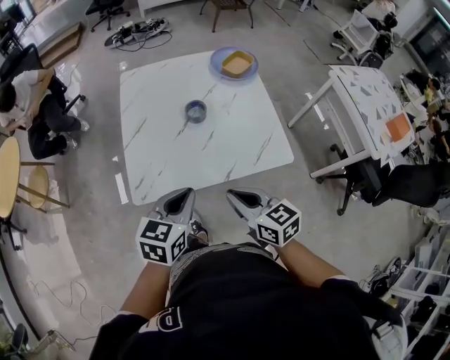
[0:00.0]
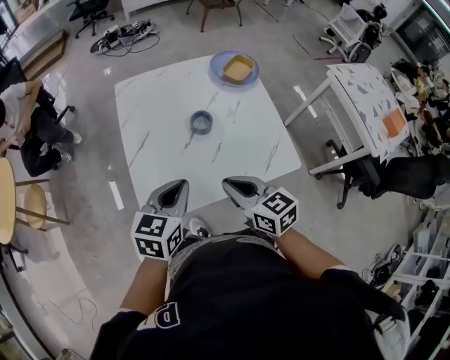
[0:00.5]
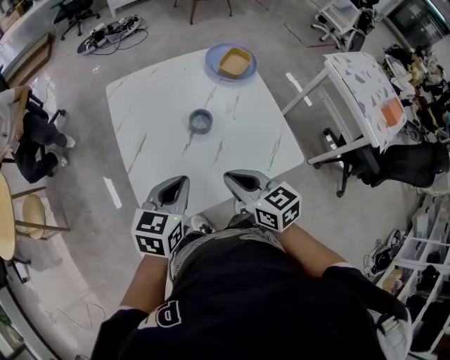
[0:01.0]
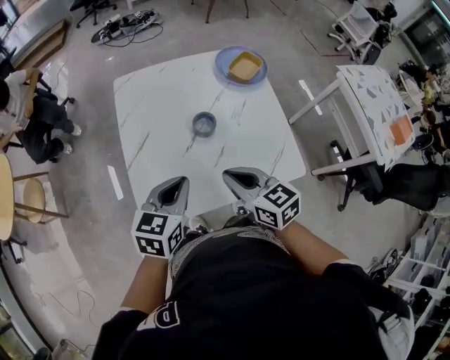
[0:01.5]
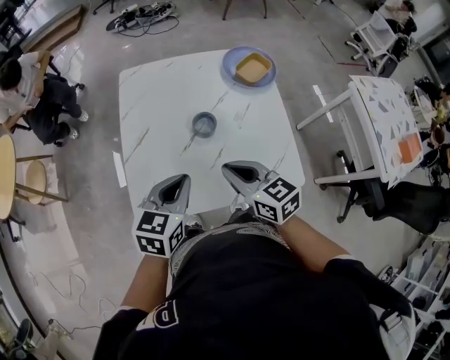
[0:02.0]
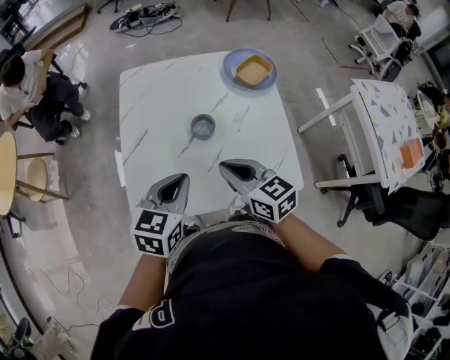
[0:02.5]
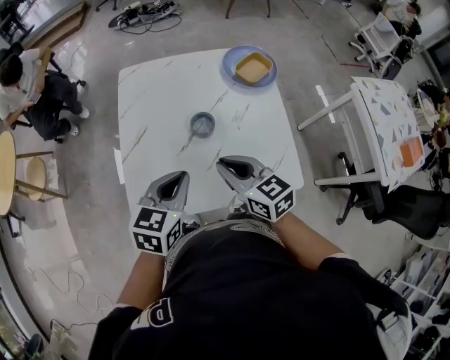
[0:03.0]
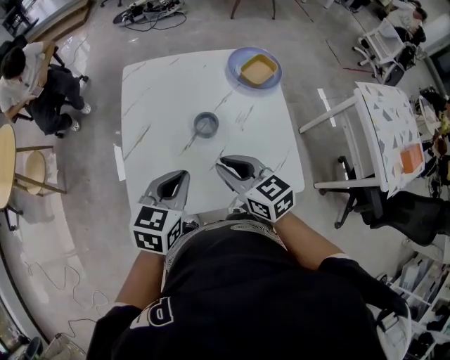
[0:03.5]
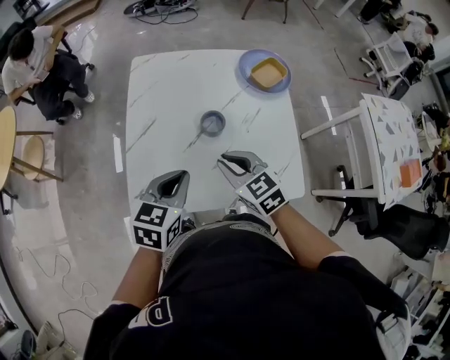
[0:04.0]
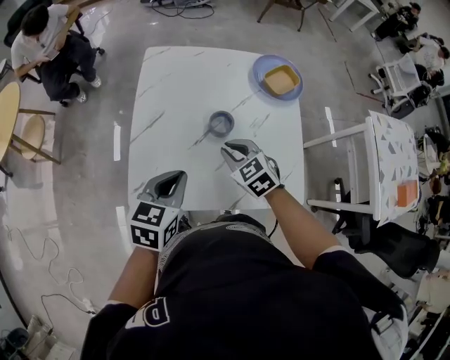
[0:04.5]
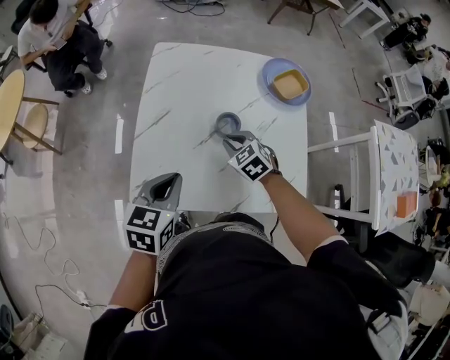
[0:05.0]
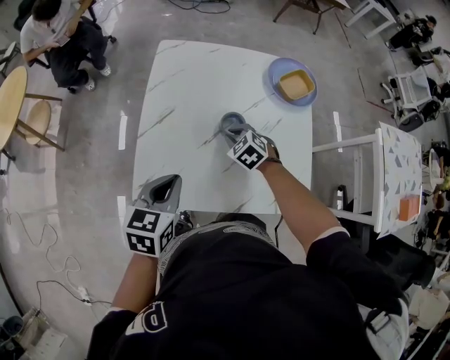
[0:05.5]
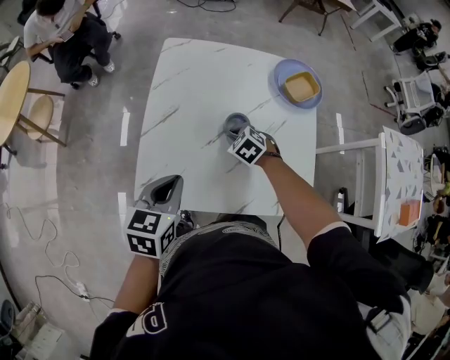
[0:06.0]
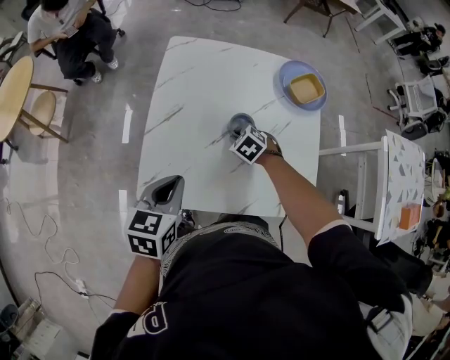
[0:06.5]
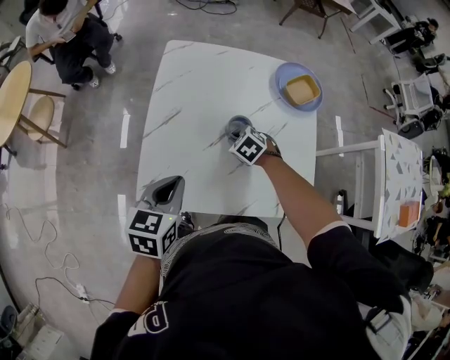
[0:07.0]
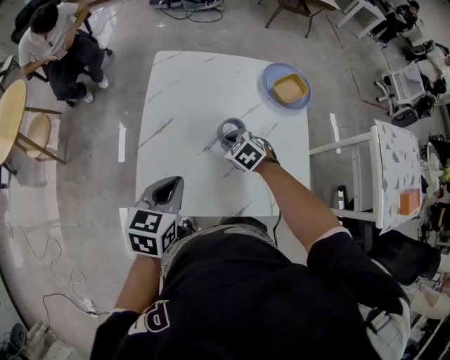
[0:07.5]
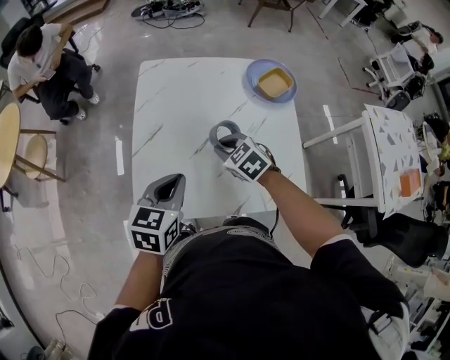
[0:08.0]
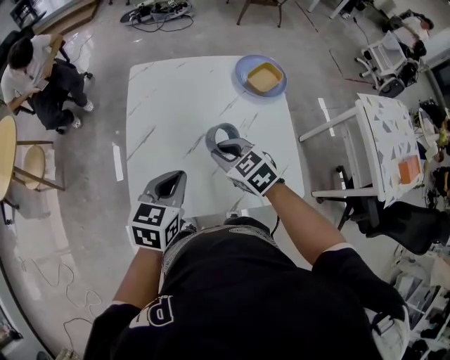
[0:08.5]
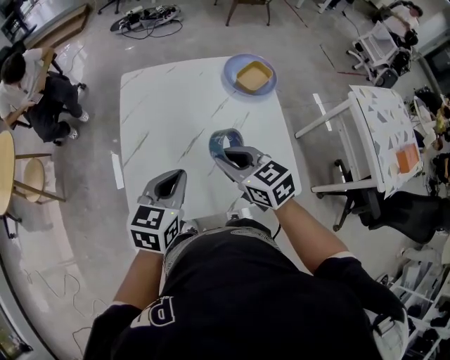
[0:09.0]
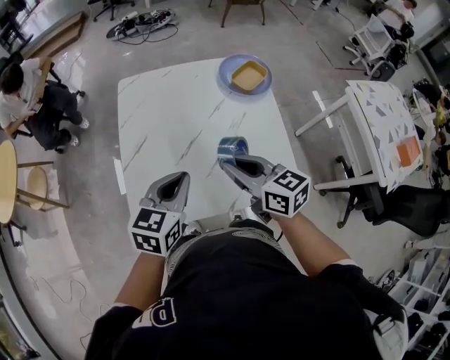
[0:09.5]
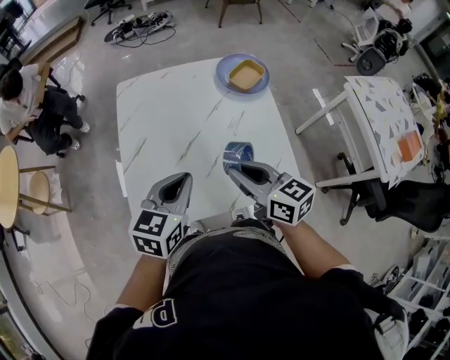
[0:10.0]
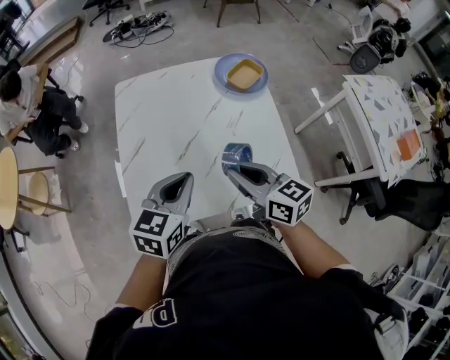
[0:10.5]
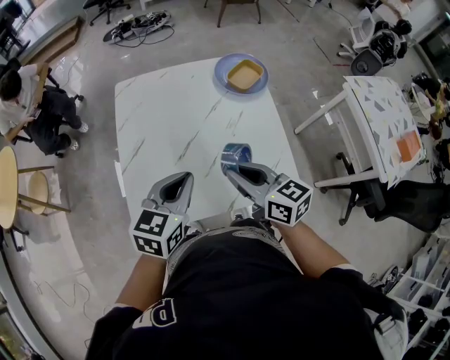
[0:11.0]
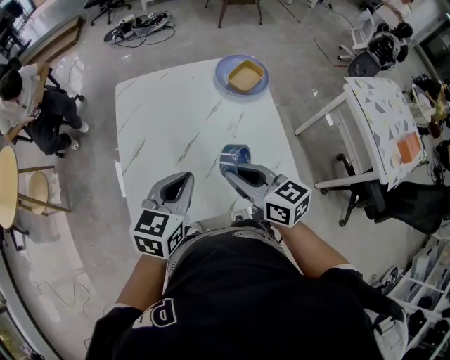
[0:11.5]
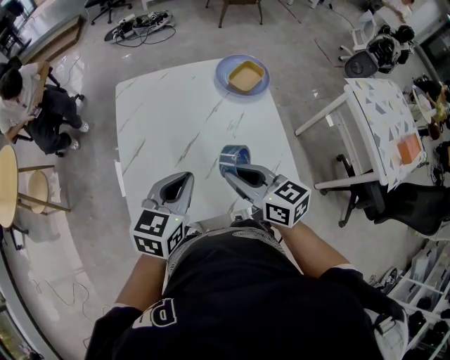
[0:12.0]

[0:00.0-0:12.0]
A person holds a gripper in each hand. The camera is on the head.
0:00.0 to 0:02.0: The grippers both shift forward by roughly 15 cm.
0:02.0 to 0:04.0: The right gripper shifts by about 5 cm, and rotates some 20 degrees.
0:04.0 to 0:06.0: The left gripper goes roughly 5 cm to the left. Meanwhile the right gripper moves downward and forward, about 20 cm, and swivels some 30 degrees.
0:06.0 to 0:08.0: The right gripper goes roughly 10 cm upward.
0:08.0 to 0:10.0: The left gripper goes some 5 cm to the right. The right gripper heads upward, backward and to the right, covering roughly 20 cm, and tips its fingers upward by roughly 40 degrees.
0:10.0 to 0:12.0: Both grippers stay put.

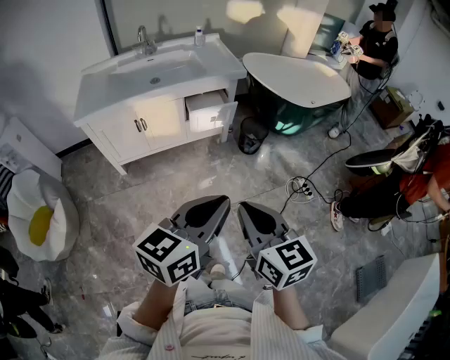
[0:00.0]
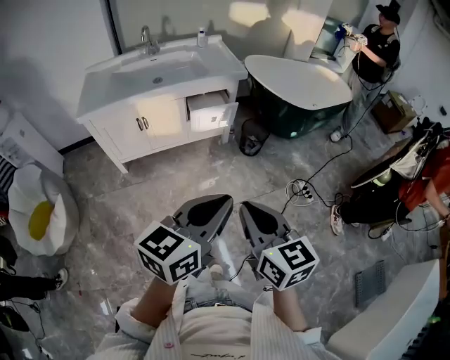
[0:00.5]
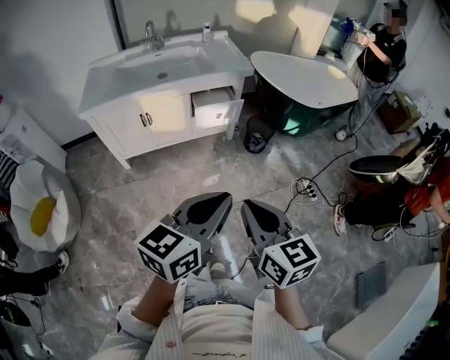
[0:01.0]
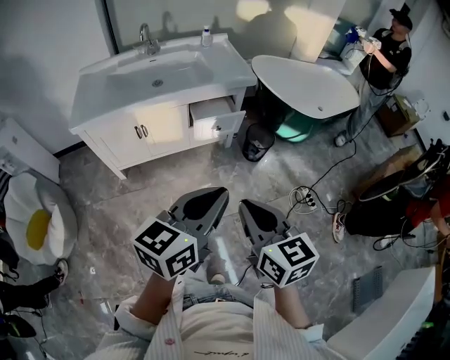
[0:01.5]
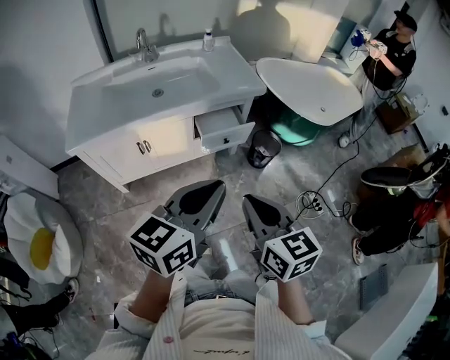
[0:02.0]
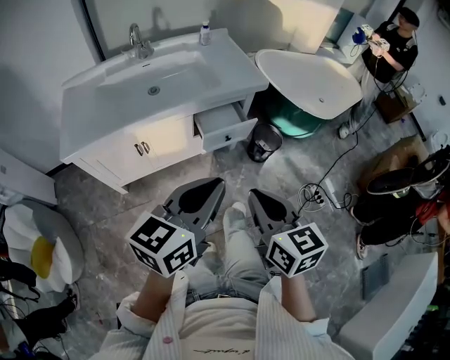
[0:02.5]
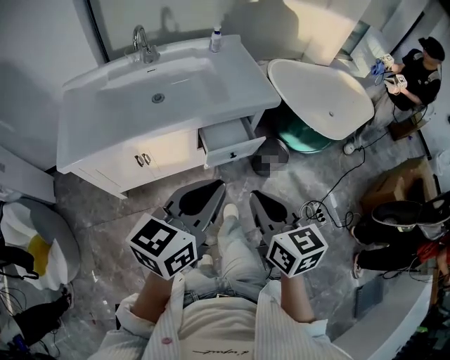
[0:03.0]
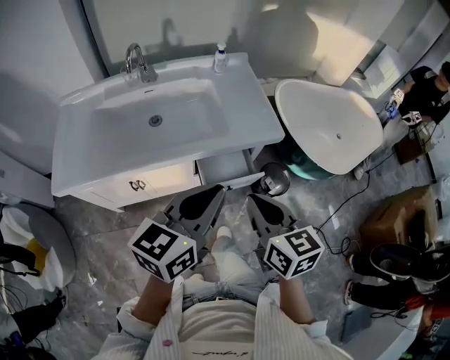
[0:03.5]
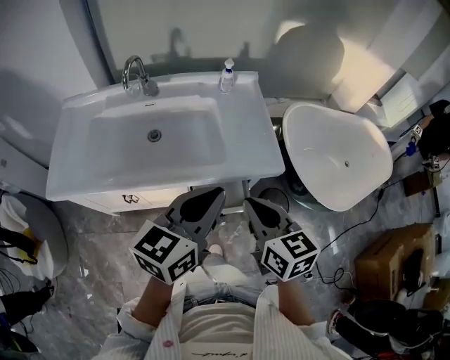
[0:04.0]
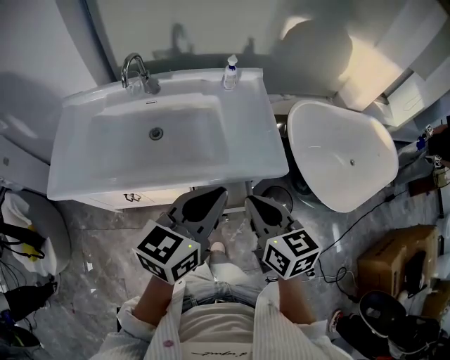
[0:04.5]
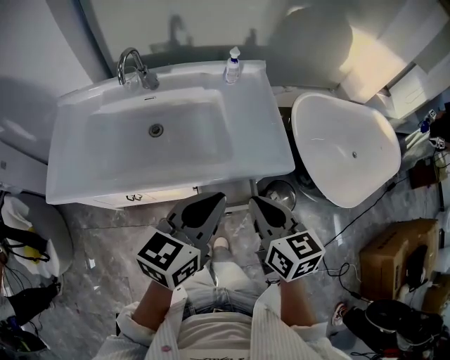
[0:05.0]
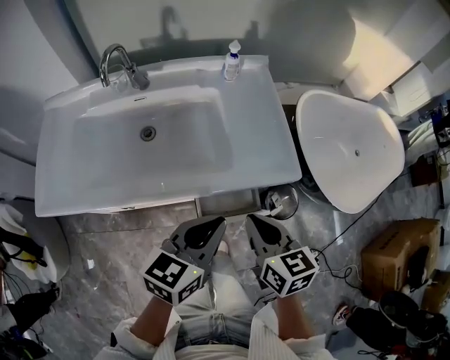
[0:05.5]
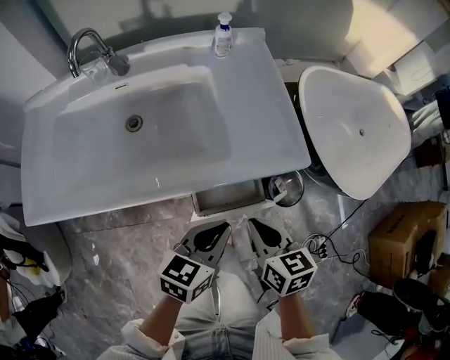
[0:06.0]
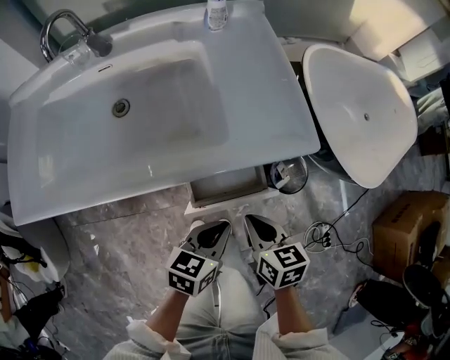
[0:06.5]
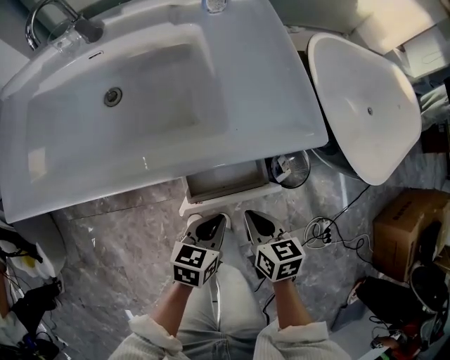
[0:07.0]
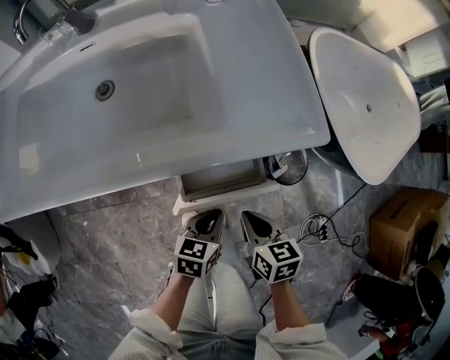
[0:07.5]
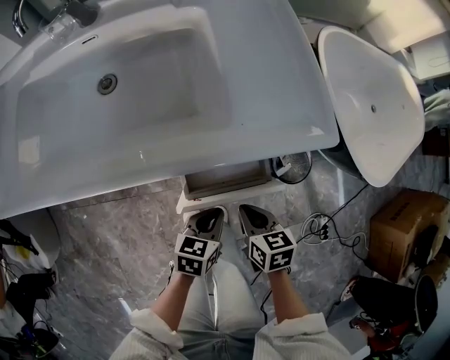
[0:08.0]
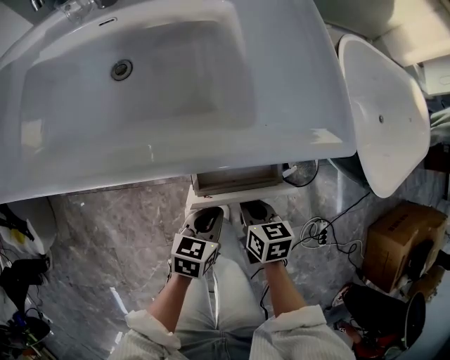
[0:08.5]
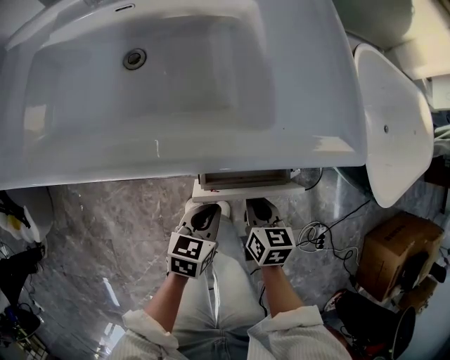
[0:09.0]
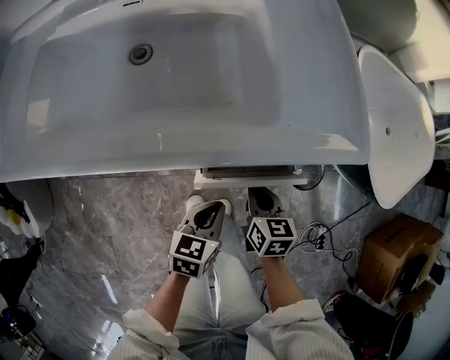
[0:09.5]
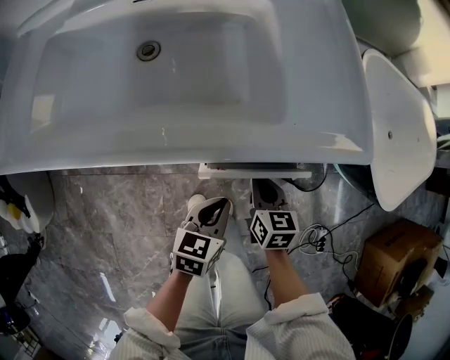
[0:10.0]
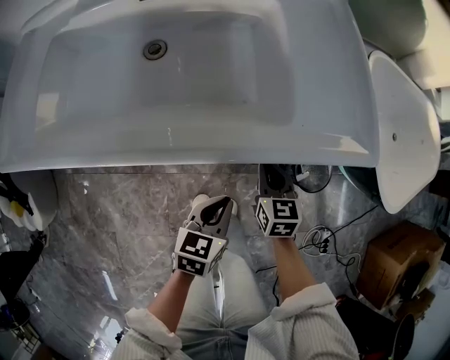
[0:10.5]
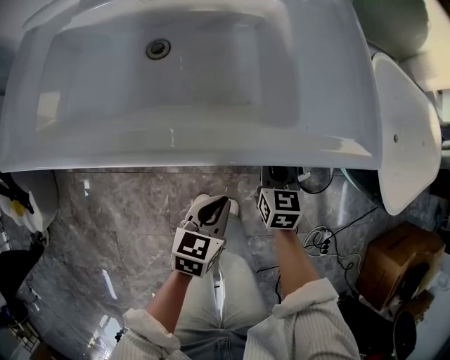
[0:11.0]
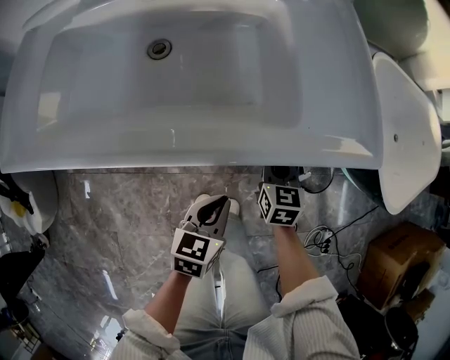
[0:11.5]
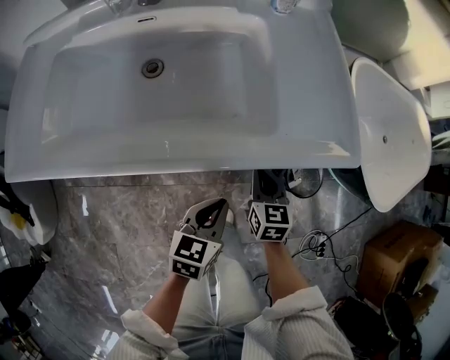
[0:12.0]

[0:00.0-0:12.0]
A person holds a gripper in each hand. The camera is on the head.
0:00.0 to 0:02.0: The grippers both shift forward and to the left by approximately 20 cm.
0:02.0 to 0:04.0: Both grippers move forward, approximately 35 cm.
0:04.0 to 0:06.0: Both grippers travel together downward, about 20 cm. The left gripper rotates roughly 20 degrees.
0:06.0 to 0:08.0: Both grippers travel together downward, approximately 20 cm.
0:08.0 to 0:10.0: The left gripper shifts by some 5 cm. Meanwhile the right gripper moves forward, about 5 cm.
0:10.0 to 0:12.0: The right gripper shifts by approximately 5 cm; the left gripper moves roughly 5 cm.

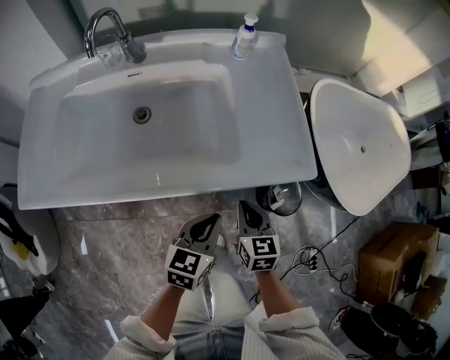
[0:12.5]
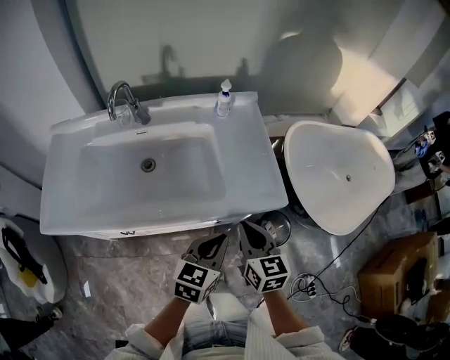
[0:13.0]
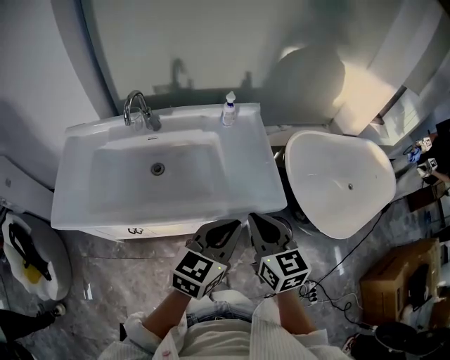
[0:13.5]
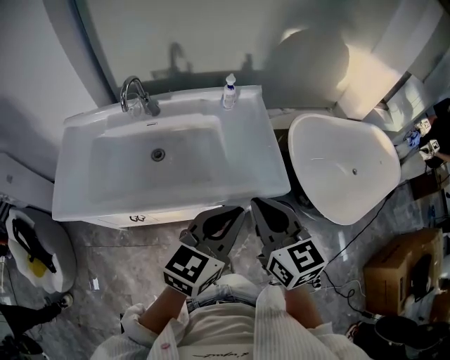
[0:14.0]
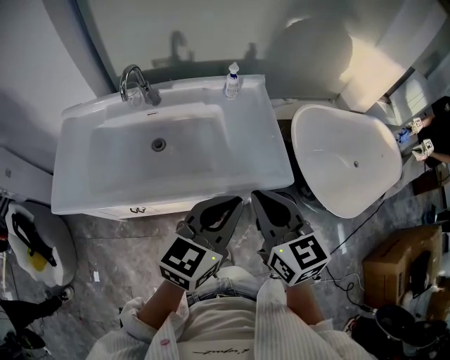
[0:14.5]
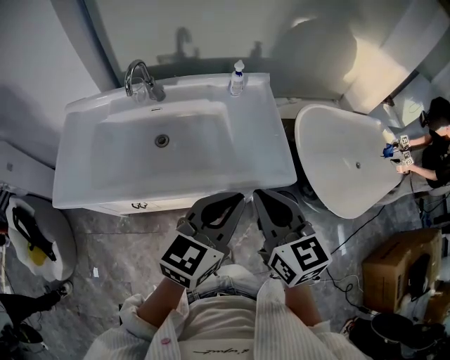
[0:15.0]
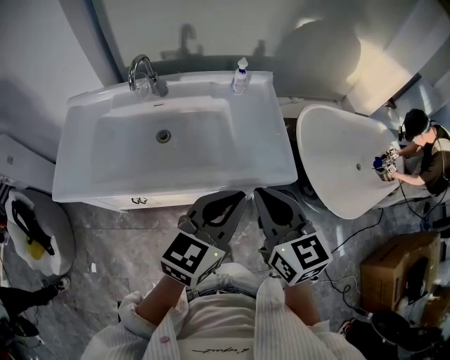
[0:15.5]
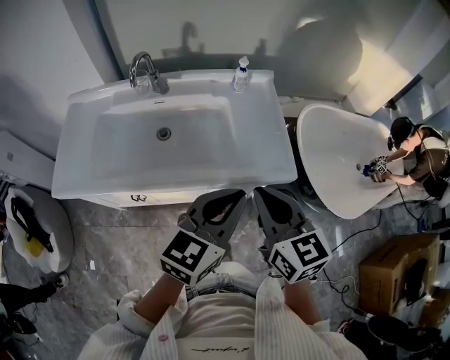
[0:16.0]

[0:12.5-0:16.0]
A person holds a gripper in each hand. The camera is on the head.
0:12.5 to 0:14.5: Both grippers move upward, some 30 cm. The left gripper rotates some 20 degrees. The right gripper changes its angle by about 20 degrees.
0:14.5 to 0:16.0: Both grippers stay put.
